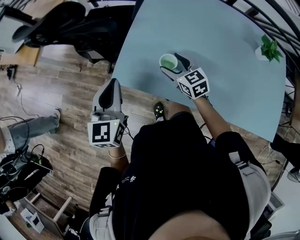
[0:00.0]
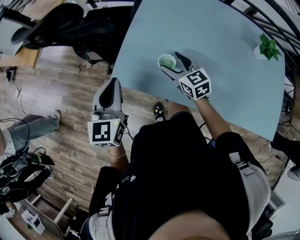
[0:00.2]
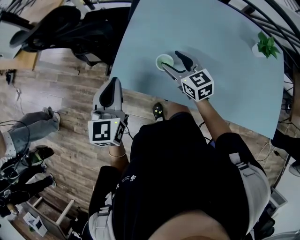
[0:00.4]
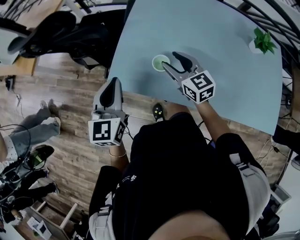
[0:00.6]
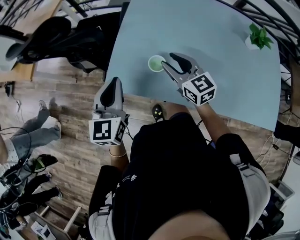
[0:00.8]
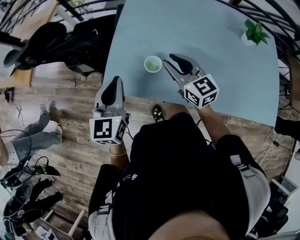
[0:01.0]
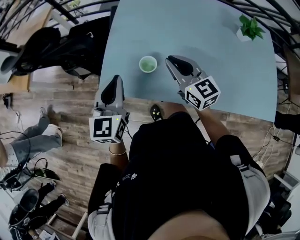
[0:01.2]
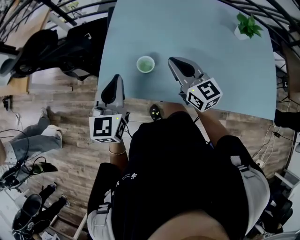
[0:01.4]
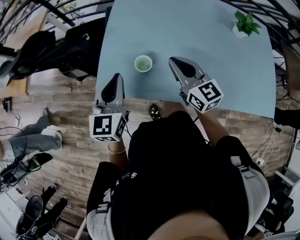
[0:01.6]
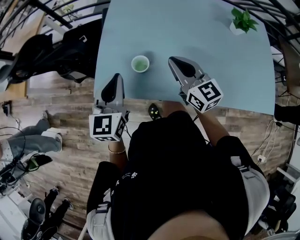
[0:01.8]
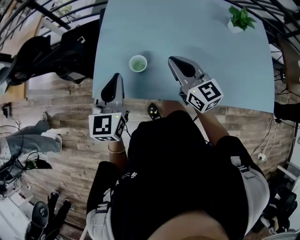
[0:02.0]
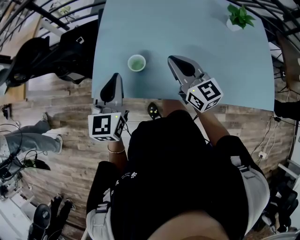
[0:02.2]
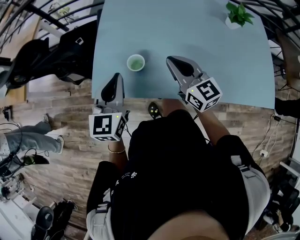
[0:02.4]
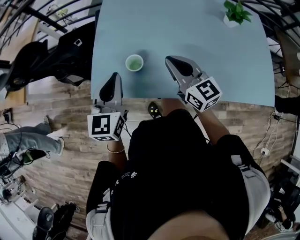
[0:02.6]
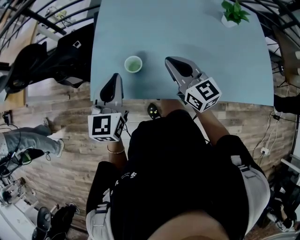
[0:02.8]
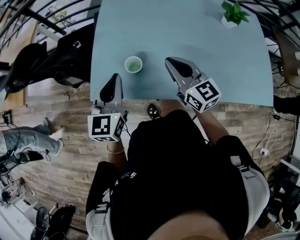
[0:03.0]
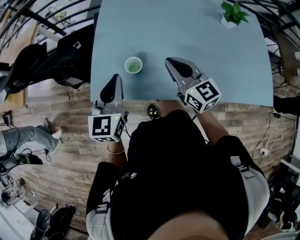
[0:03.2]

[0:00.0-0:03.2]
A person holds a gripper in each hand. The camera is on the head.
0:00.0 to 0:01.6: The right gripper heads upward, to the right and backward, covering roughly 15 cm, changes its angle by some 30 degrees, and closes; the left gripper moves to the right, some 10 cm.
0:01.6 to 0:03.2: The grippers stay close to where they were, moving slightly.

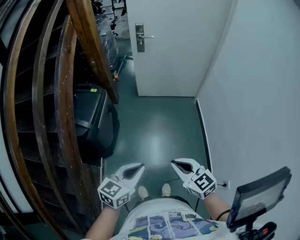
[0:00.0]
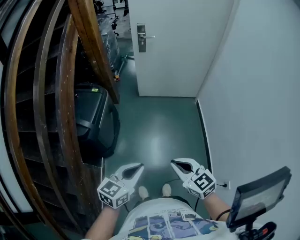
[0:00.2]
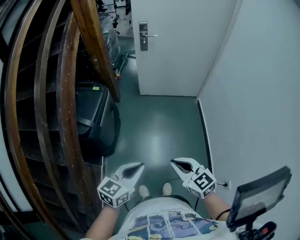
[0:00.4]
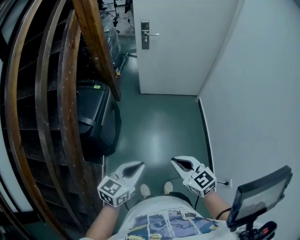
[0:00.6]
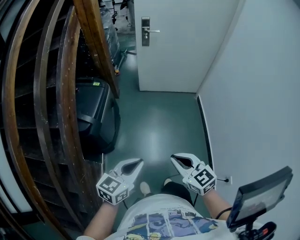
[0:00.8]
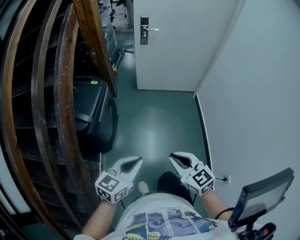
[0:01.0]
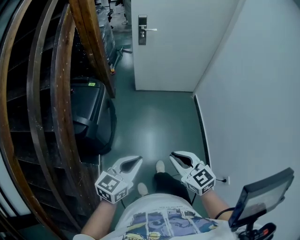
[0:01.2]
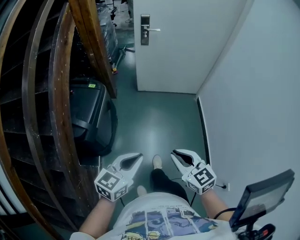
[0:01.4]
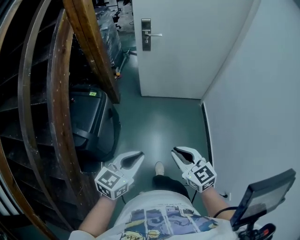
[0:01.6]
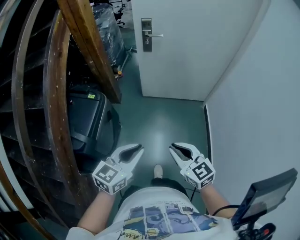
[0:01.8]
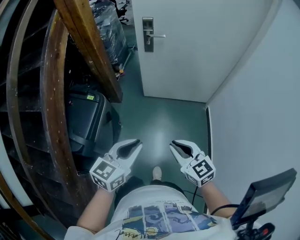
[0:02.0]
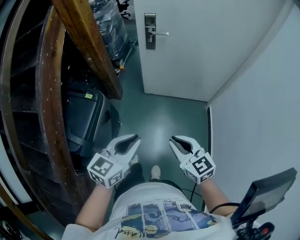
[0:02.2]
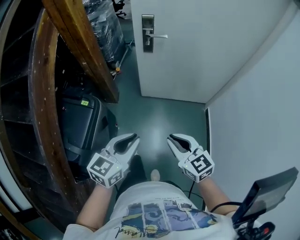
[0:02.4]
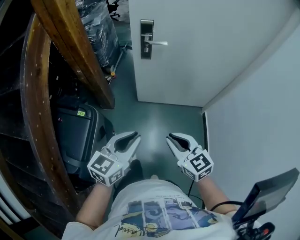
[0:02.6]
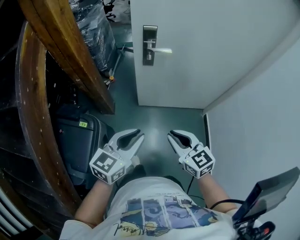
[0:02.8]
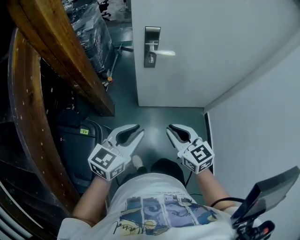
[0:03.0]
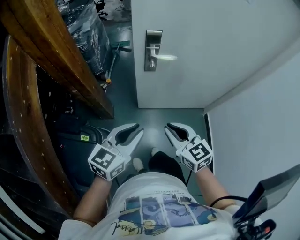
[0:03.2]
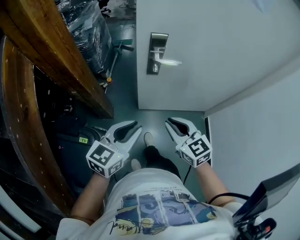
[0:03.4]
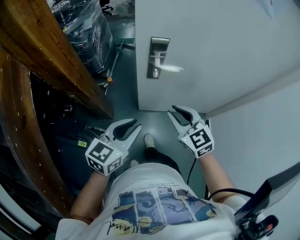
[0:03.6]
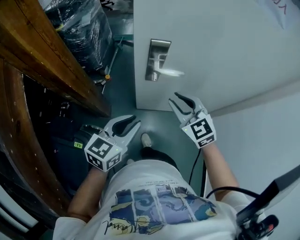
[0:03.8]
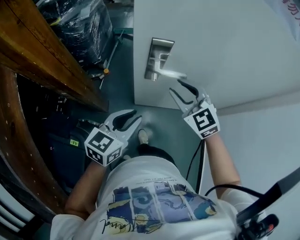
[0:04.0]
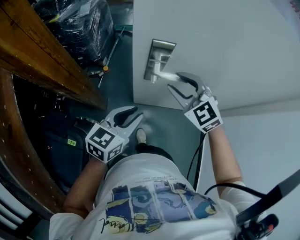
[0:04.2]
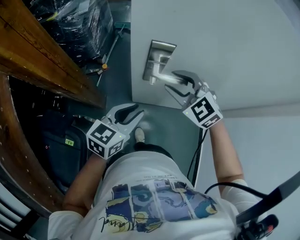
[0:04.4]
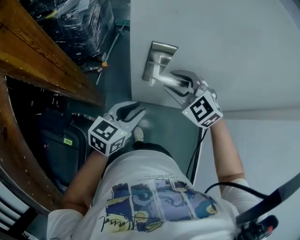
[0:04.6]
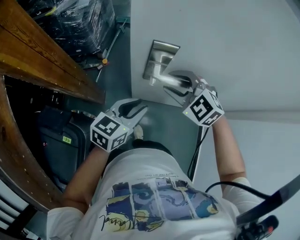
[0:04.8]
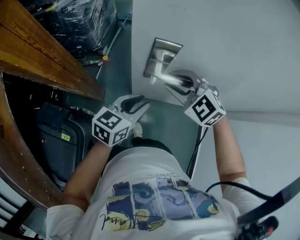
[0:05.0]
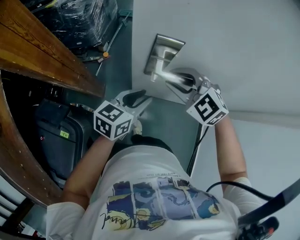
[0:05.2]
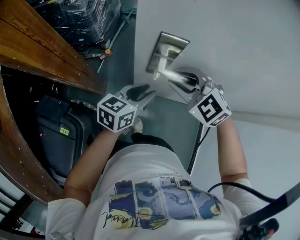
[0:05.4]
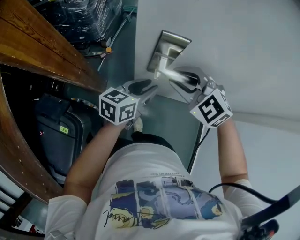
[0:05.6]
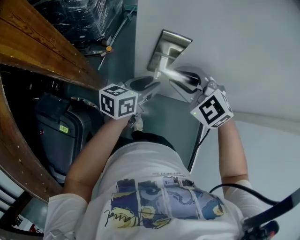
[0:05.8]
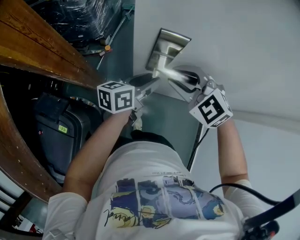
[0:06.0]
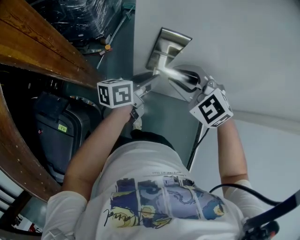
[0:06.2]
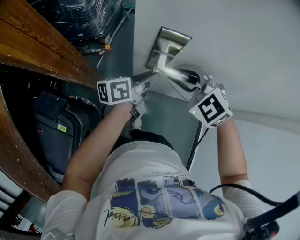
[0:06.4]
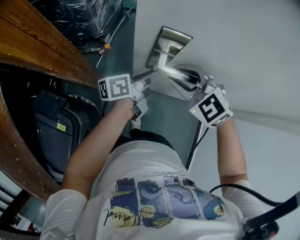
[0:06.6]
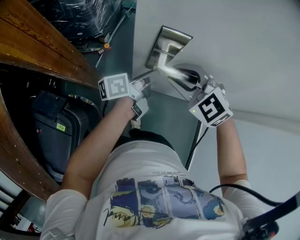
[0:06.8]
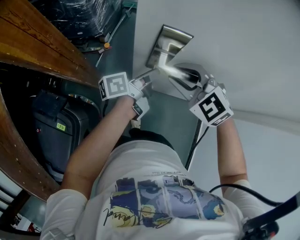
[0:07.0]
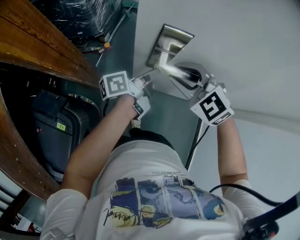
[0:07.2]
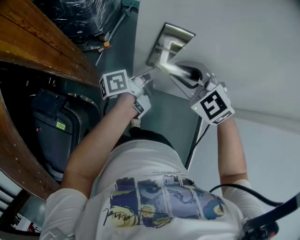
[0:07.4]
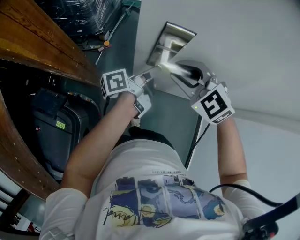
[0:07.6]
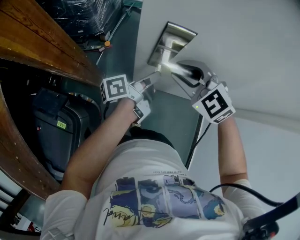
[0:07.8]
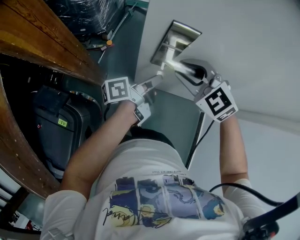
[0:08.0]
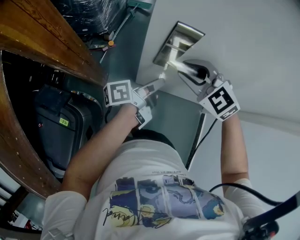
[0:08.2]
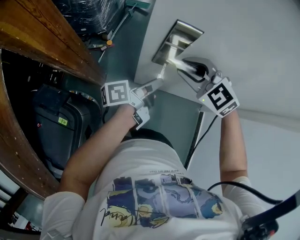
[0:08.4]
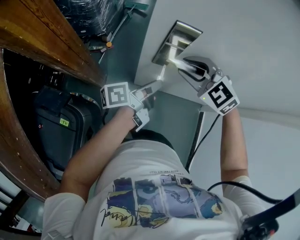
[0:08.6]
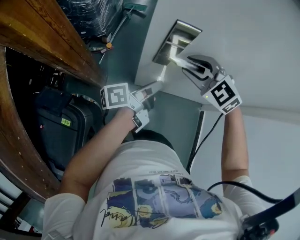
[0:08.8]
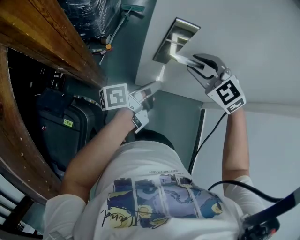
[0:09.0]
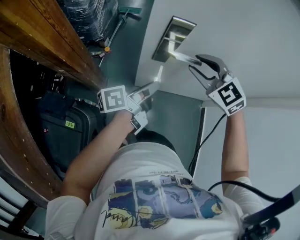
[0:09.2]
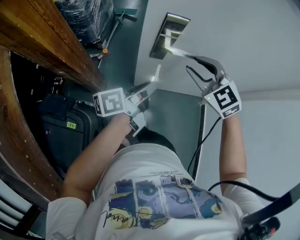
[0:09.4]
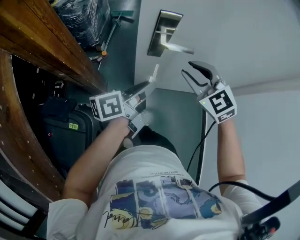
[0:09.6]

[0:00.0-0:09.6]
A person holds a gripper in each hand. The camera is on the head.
0:00.0 to 0:01.6: The grippers both shift forward by some 15 cm.
0:01.6 to 0:03.2: Both grippers are carried forward, some 50 cm.
0:03.2 to 0:04.8: The two grippers go roughly 25 cm forward. The right gripper rolls counterclockwise, seen from behind, by roughly 40 degrees, and opens up.
0:04.8 to 0:06.4: The left gripper moves forward, approximately 10 cm, and rolls counterclockwise, seen from behind, by approximately 40 degrees.
0:06.4 to 0:08.0: The left gripper swivels approximately 20 degrees.
0:08.0 to 0:09.6: The right gripper travels backward by approximately 10 cm, and rotates approximately 20 degrees, while the left gripper moves backward and upward, some 15 cm, and swivels some 20 degrees.

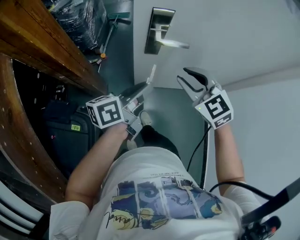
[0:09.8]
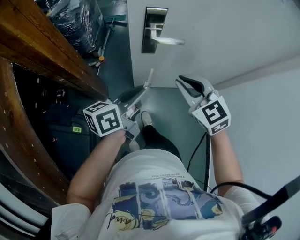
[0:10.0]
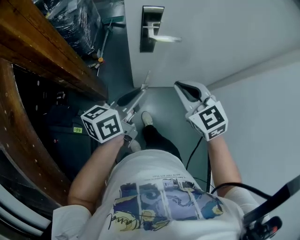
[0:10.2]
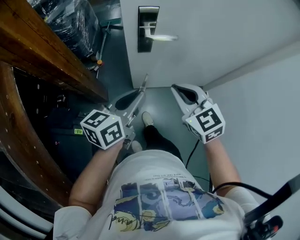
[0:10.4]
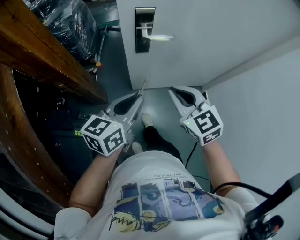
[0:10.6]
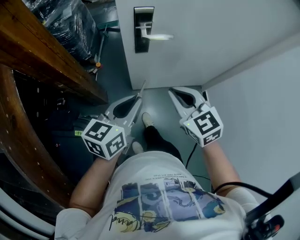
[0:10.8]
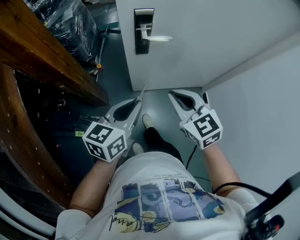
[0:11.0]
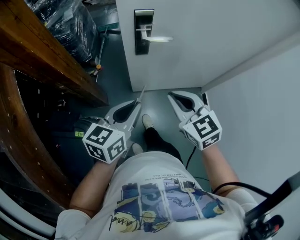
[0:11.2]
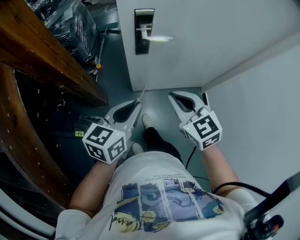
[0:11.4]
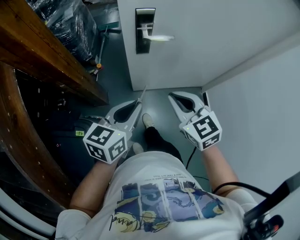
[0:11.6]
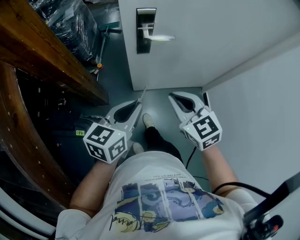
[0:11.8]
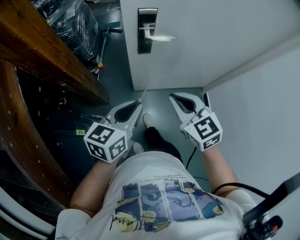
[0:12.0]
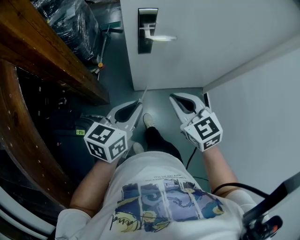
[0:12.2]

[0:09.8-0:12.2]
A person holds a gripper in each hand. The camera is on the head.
0:09.8 to 0:11.0: The two grippers go some 10 cm backward. The right gripper closes, while the left gripper rotates approximately 30 degrees.
0:11.0 to 0:12.2: Neither gripper changes place.

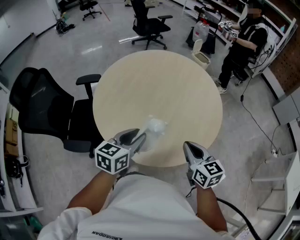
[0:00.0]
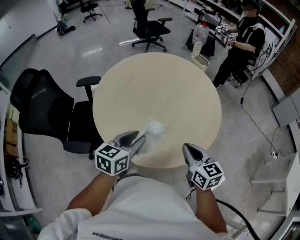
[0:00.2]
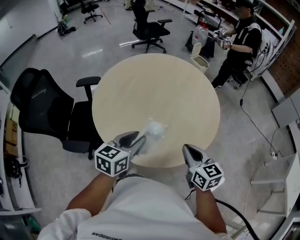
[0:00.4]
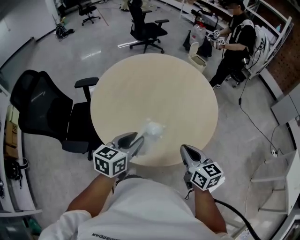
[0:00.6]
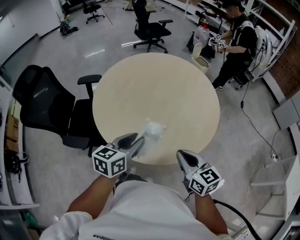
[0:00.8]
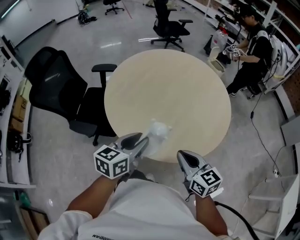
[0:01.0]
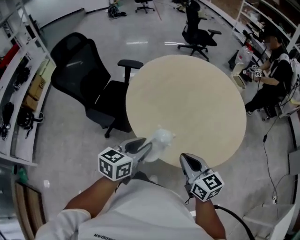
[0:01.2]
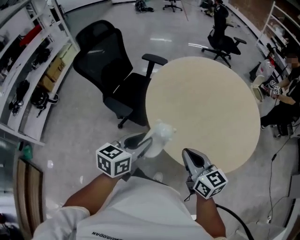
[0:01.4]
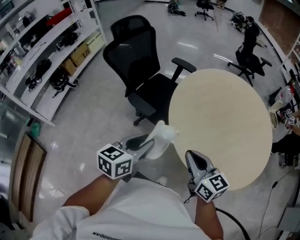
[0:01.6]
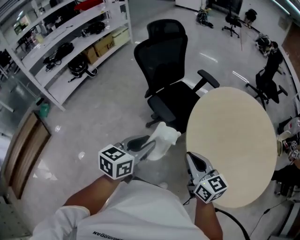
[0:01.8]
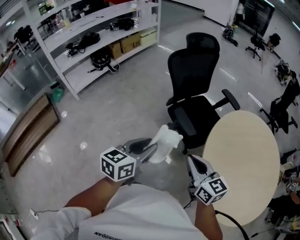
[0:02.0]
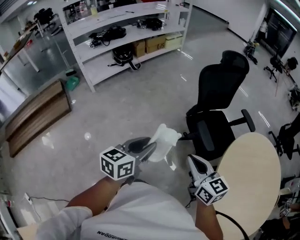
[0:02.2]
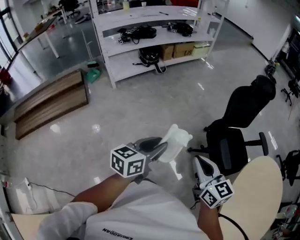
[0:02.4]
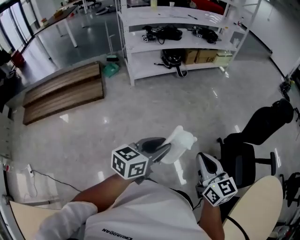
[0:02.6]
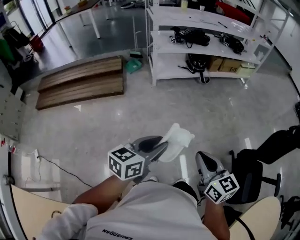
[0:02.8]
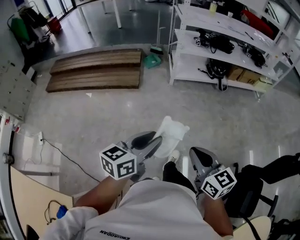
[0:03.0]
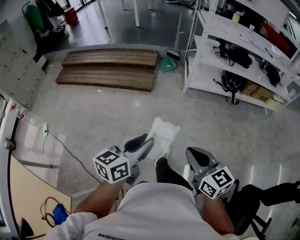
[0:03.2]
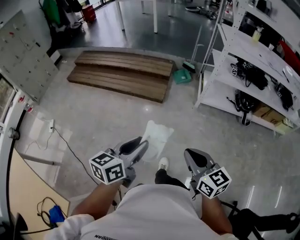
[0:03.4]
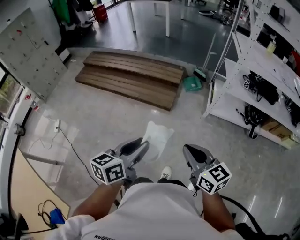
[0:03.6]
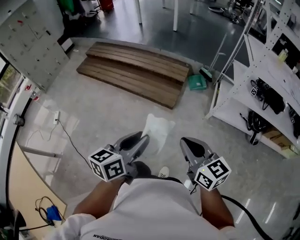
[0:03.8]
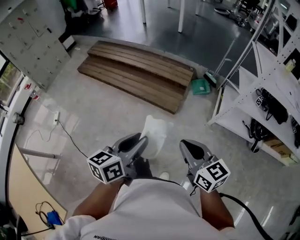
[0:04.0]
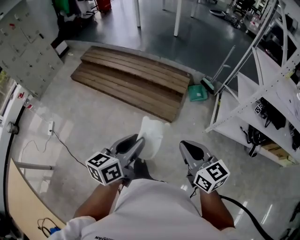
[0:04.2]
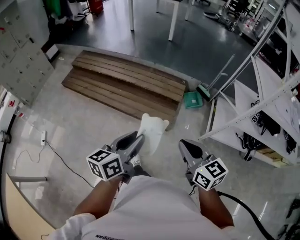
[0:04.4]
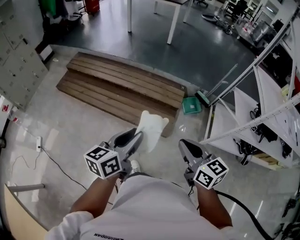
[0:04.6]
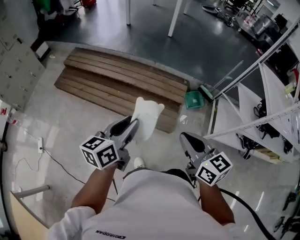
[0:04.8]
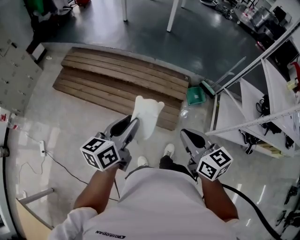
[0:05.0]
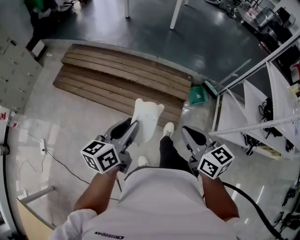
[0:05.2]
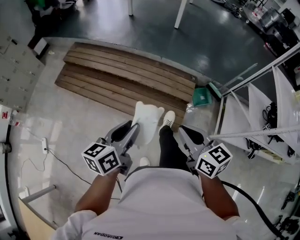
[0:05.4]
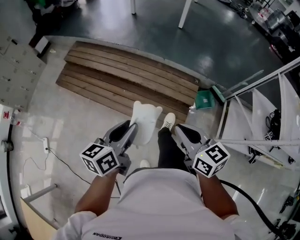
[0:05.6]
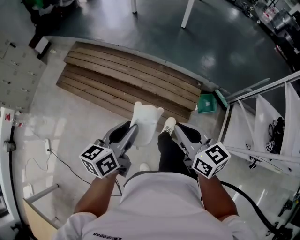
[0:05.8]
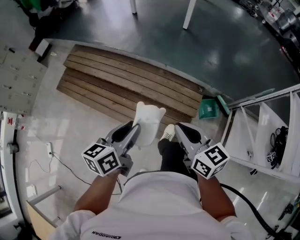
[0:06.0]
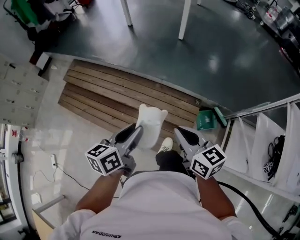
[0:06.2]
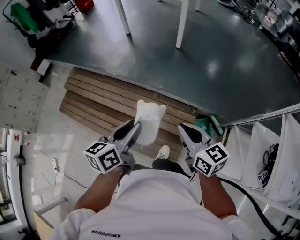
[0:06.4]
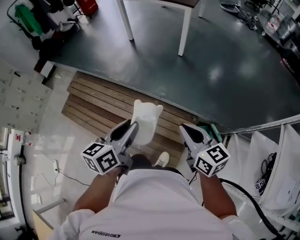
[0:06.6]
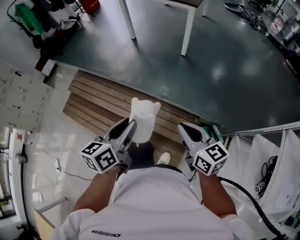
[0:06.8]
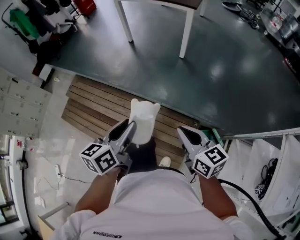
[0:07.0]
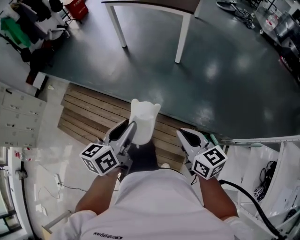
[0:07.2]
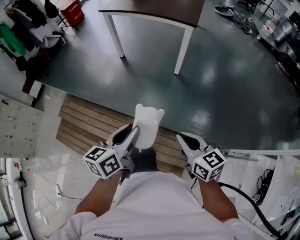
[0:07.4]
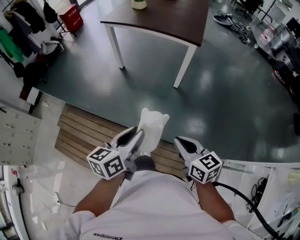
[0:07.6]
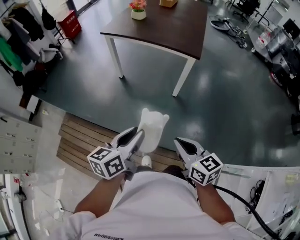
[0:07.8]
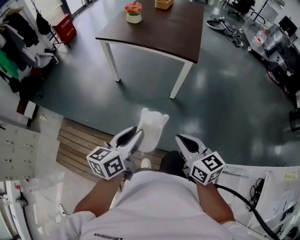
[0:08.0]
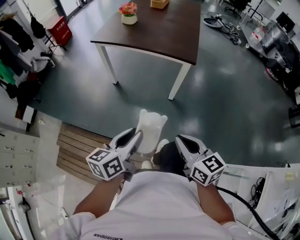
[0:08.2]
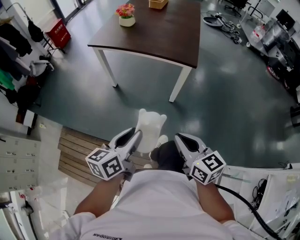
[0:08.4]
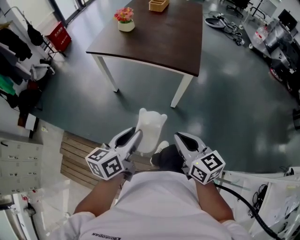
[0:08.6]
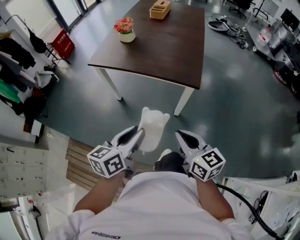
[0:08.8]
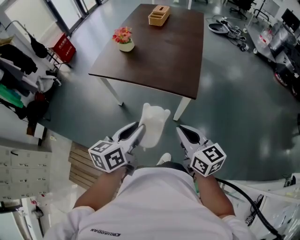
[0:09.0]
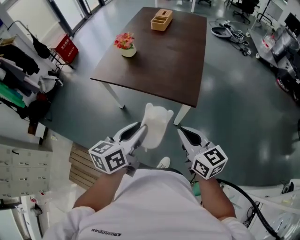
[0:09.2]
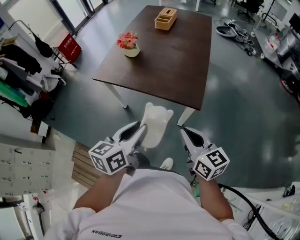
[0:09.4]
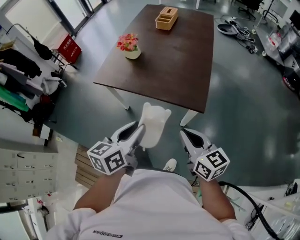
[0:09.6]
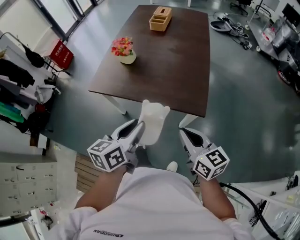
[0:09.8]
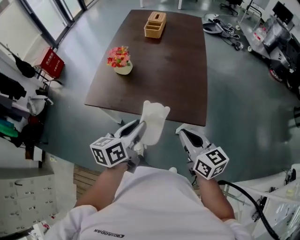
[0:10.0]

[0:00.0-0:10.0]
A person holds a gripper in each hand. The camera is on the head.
0:00.0 to 0:01.4: The right gripper ends up roughly 15 cm from where it was, and swivels about 40 degrees; the left gripper shifts by roughly 15 cm, and changes its angle by about 30 degrees.
0:01.4 to 0:02.8: The two grippers travel together, approximately 70 cm. The right gripper turns by approximately 70 degrees. Meanwhile the left gripper swivels approximately 70 degrees.
0:02.8 to 0:04.2: Both grippers are carried roughly 60 cm. The left gripper changes its angle by some 50 degrees. Meanwhile the right gripper changes its angle by about 40 degrees.
0:04.2 to 0:05.8: The two grippers travel together, forward, roughly 40 cm.
0:05.8 to 0:07.2: Both grippers travel together forward, roughly 40 cm.
0:07.2 to 0:08.6: The grippers both shift forward by roughly 35 cm.
0:08.6 to 0:10.0: Both grippers move forward, about 30 cm.
